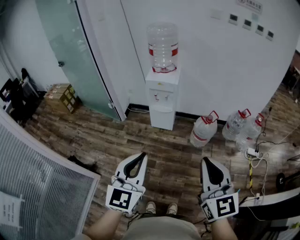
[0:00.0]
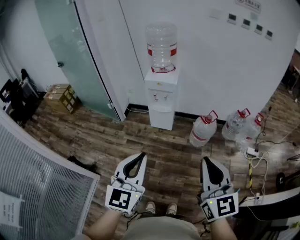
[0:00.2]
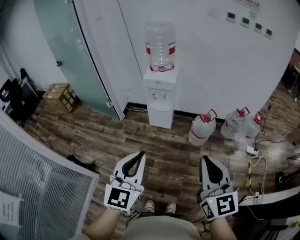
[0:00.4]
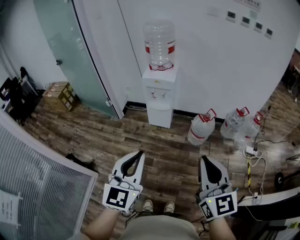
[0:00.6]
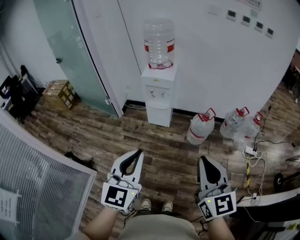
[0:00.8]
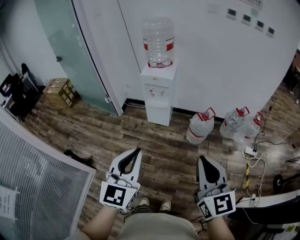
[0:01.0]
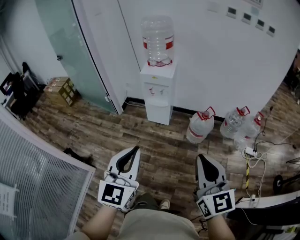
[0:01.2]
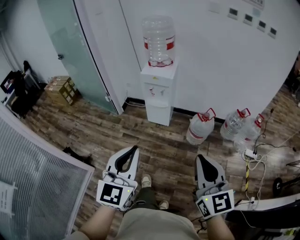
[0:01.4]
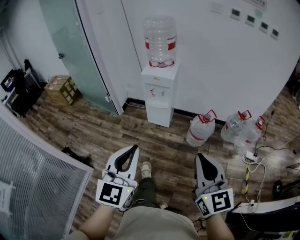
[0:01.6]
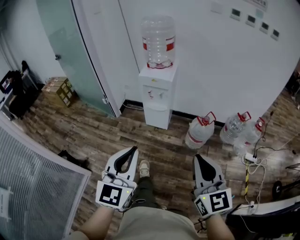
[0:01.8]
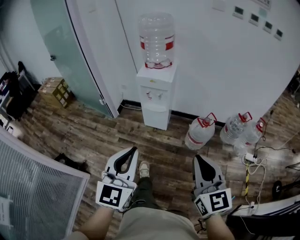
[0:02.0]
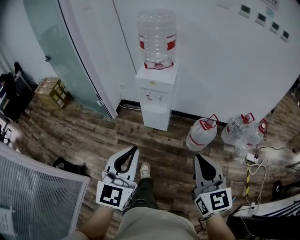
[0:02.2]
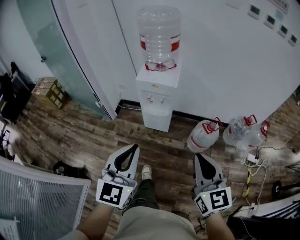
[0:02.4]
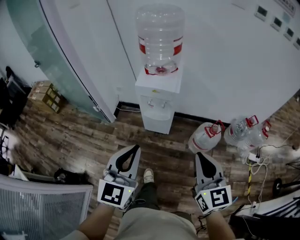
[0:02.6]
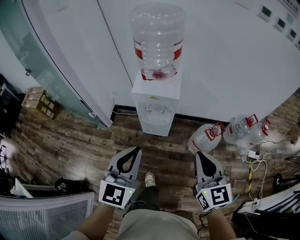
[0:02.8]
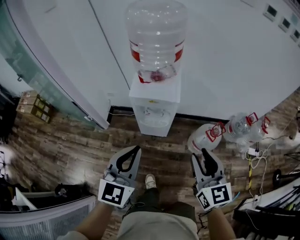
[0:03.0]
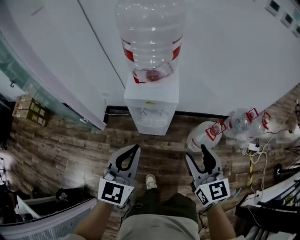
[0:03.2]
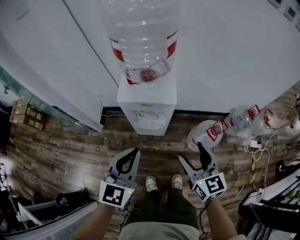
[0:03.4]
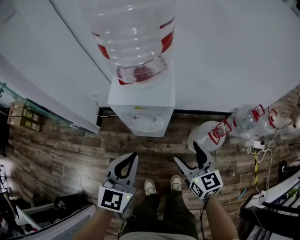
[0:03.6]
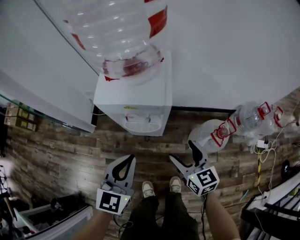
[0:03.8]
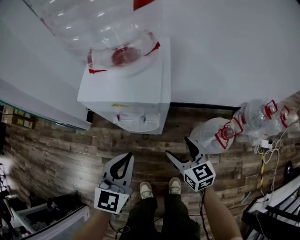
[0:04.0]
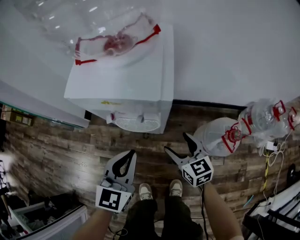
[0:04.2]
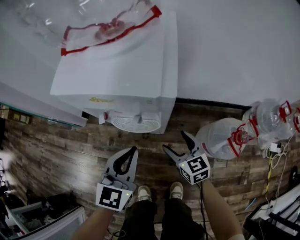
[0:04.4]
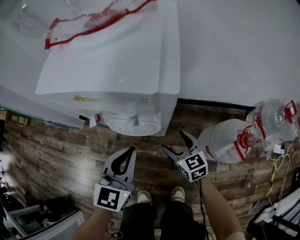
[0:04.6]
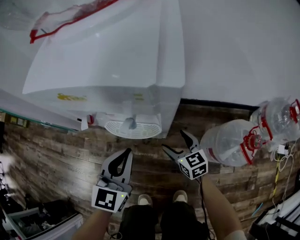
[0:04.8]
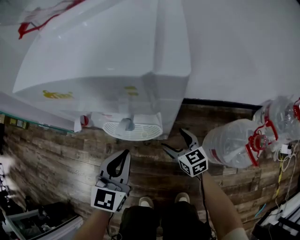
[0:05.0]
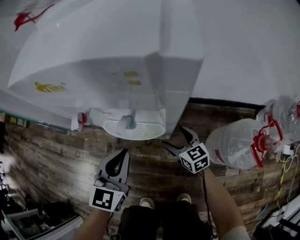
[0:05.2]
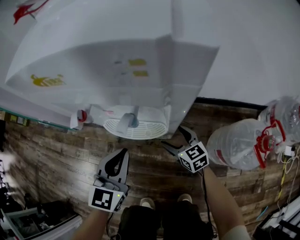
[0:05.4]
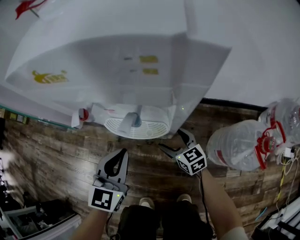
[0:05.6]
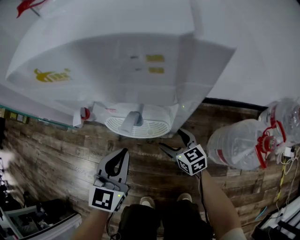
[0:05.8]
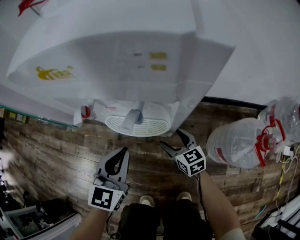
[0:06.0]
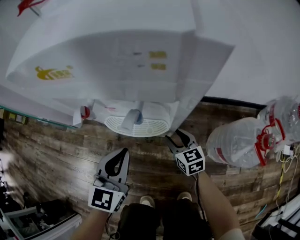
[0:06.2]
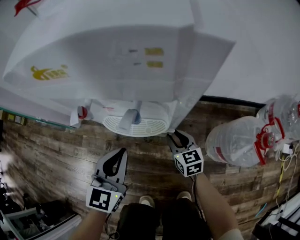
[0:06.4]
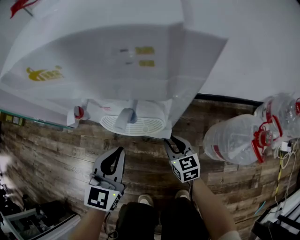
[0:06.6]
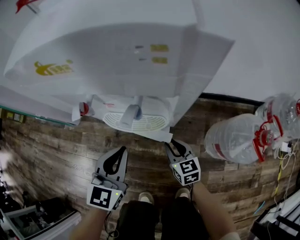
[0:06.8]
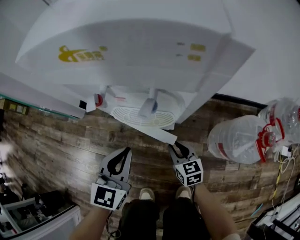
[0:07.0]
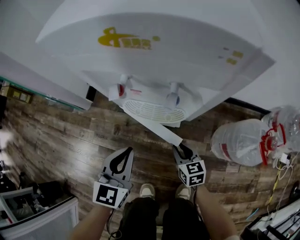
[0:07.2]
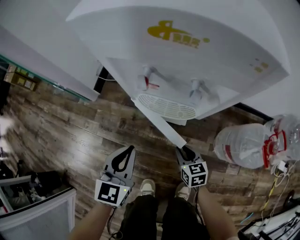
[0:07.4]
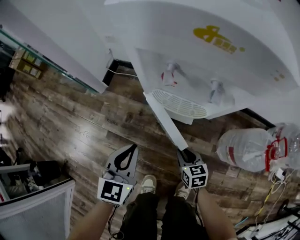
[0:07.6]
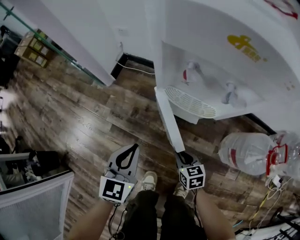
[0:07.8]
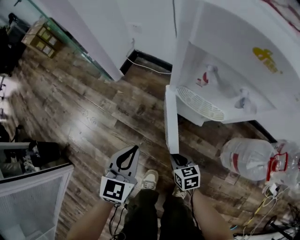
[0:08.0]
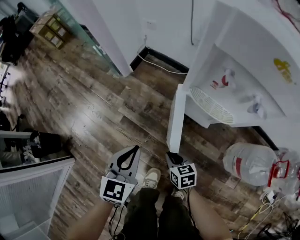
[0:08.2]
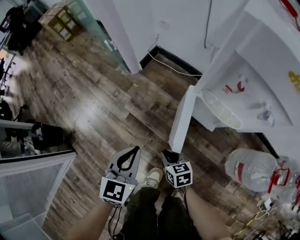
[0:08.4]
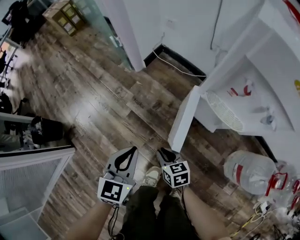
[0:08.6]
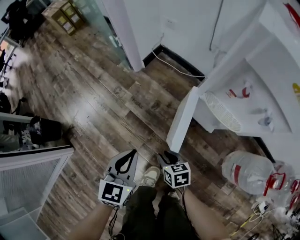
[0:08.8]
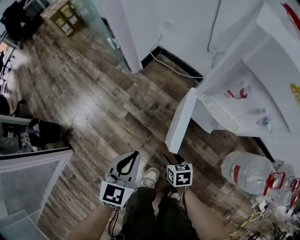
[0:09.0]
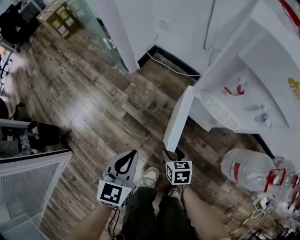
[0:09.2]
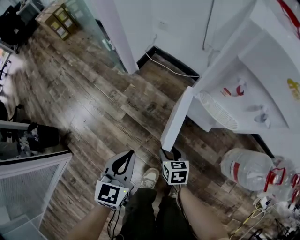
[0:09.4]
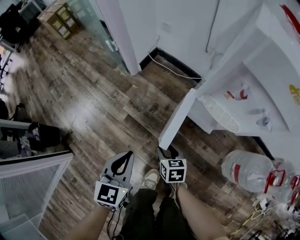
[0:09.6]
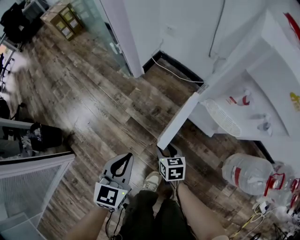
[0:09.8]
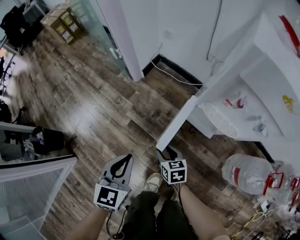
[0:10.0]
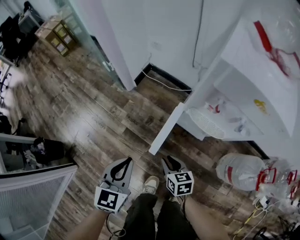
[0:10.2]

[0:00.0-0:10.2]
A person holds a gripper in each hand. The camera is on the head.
0:00.0 to 0:01.4: Both grippers move to the right, about 5 cm.
0:01.4 to 0:03.0: Both grippers are carried forward, some 40 cm.
0:03.0 to 0:04.4: The grippers both shift downward and forward by roughly 50 cm. The right gripper turns by some 20 degrees, and opens its fingers.
0:04.4 to 0:05.8: Both grippers move downward, approximately 15 cm.
0:05.8 to 0:07.2: The right gripper is displaced backward by roughly 10 cm, and closes. The left gripper ends up some 5 cm from where it was.
0:07.2 to 0:08.8: The left gripper shifts by approximately 25 cm, and turns by roughly 30 degrees, while the right gripper ends up approximately 30 cm from where it was, and changes its angle by approximately 40 degrees.
0:08.8 to 0:10.2: The grippers both shift upward by approximately 10 cm.

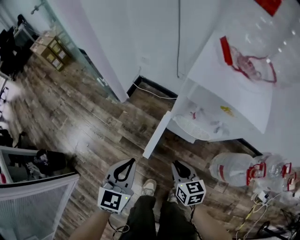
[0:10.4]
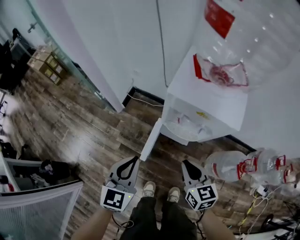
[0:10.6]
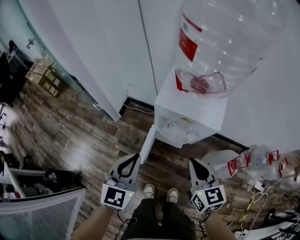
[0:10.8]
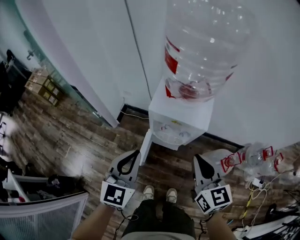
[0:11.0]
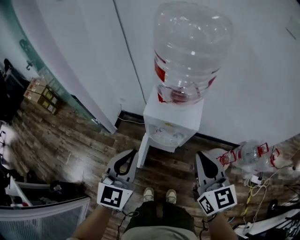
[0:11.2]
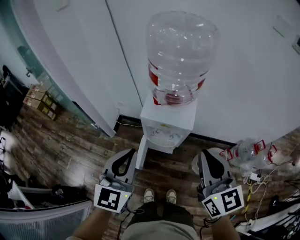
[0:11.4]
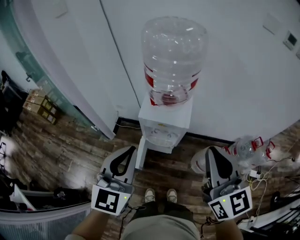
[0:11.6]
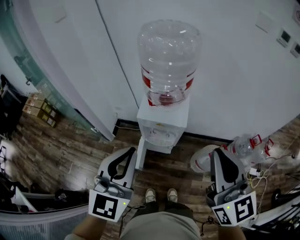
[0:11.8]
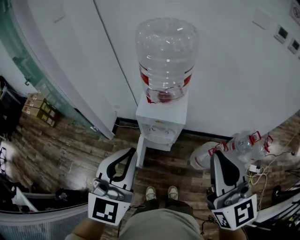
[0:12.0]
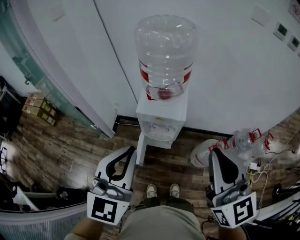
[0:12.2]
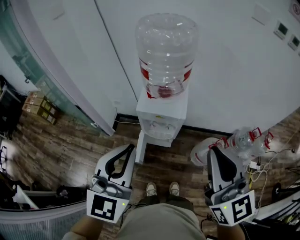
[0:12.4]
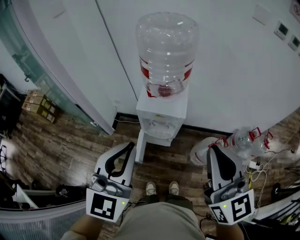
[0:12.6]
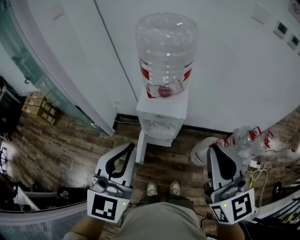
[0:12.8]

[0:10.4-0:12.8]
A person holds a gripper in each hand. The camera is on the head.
0:10.4 to 0:11.6: Both grippers travel together upward, about 50 cm. The right gripper tilts its fingers about 30 degrees upward; the left gripper turns by approximately 30 degrees.
0:11.6 to 0:12.8: The right gripper moves backward, some 5 cm. The left gripper ends up approximately 5 cm from where it was.

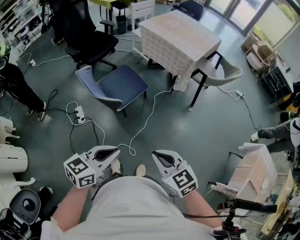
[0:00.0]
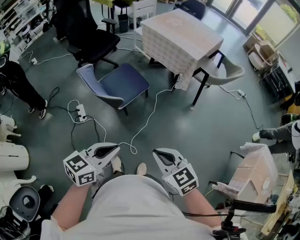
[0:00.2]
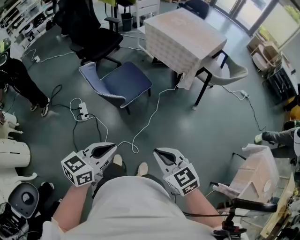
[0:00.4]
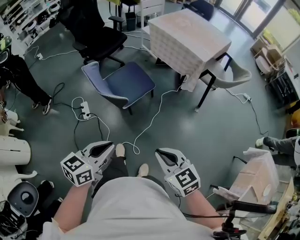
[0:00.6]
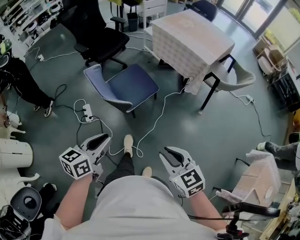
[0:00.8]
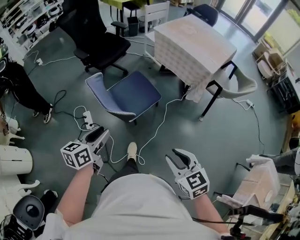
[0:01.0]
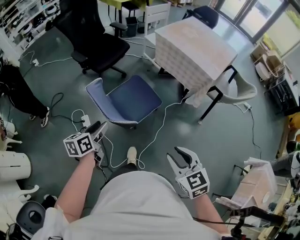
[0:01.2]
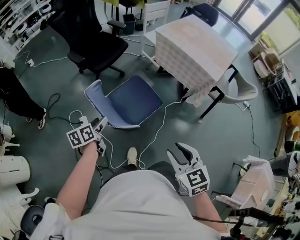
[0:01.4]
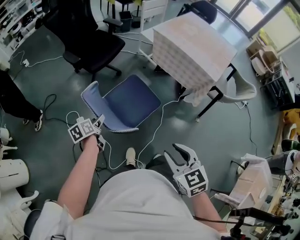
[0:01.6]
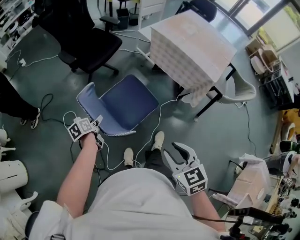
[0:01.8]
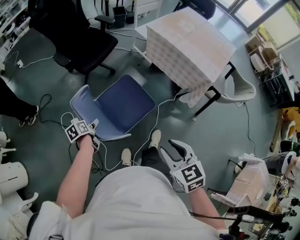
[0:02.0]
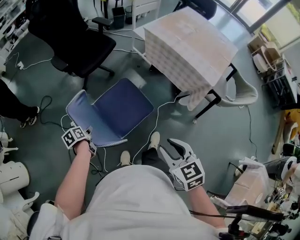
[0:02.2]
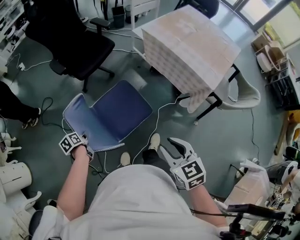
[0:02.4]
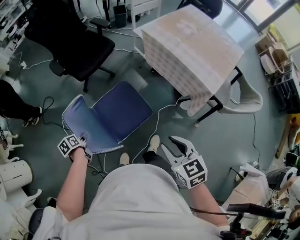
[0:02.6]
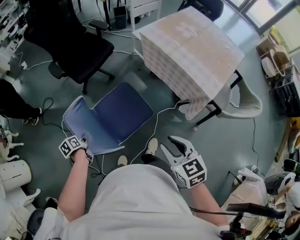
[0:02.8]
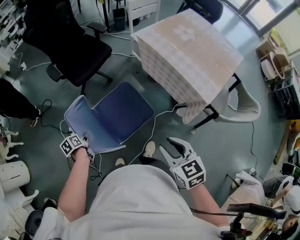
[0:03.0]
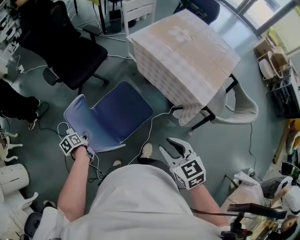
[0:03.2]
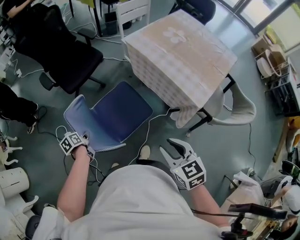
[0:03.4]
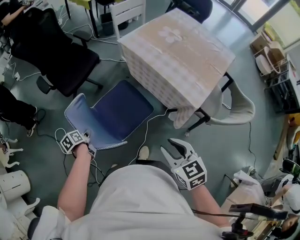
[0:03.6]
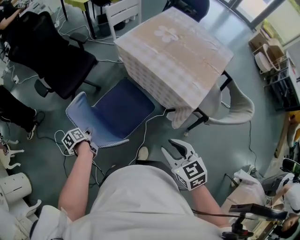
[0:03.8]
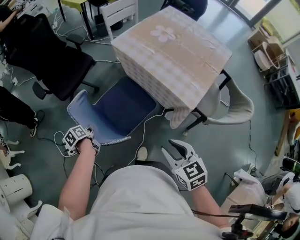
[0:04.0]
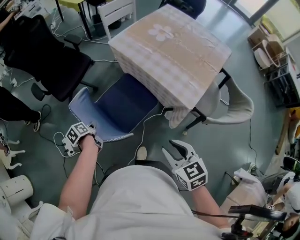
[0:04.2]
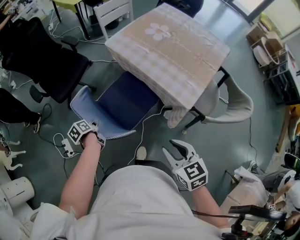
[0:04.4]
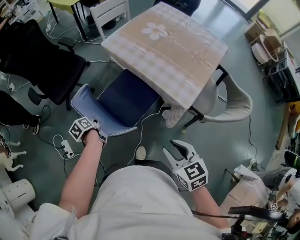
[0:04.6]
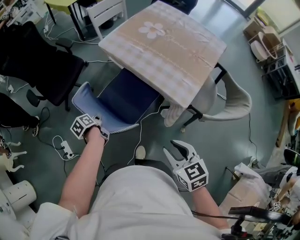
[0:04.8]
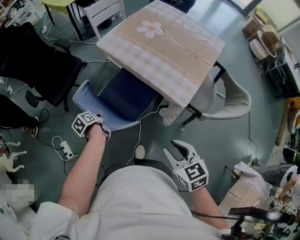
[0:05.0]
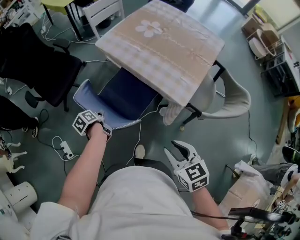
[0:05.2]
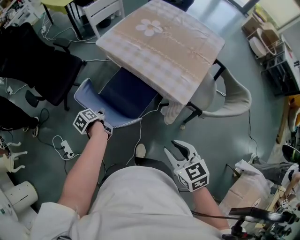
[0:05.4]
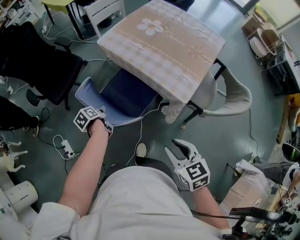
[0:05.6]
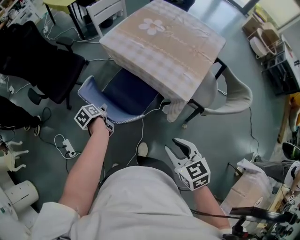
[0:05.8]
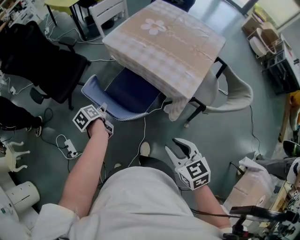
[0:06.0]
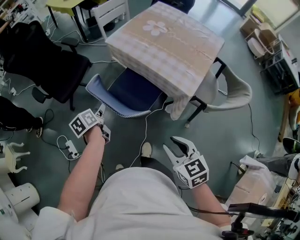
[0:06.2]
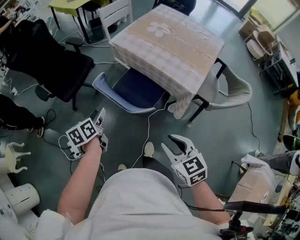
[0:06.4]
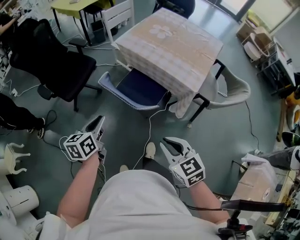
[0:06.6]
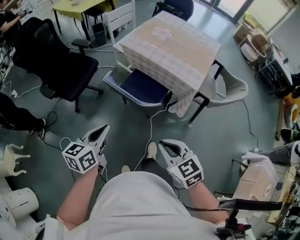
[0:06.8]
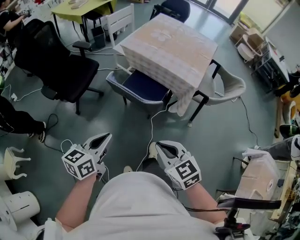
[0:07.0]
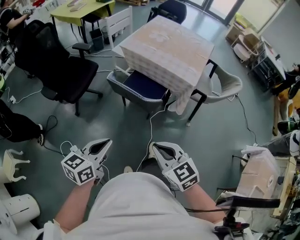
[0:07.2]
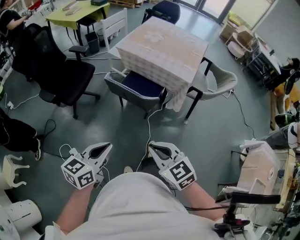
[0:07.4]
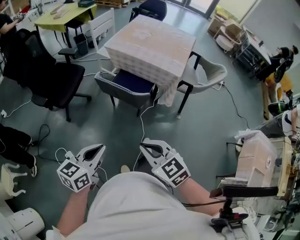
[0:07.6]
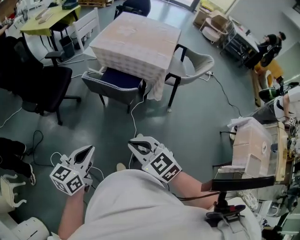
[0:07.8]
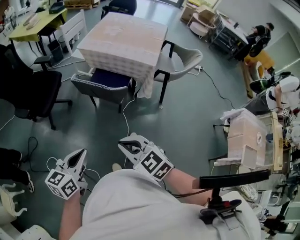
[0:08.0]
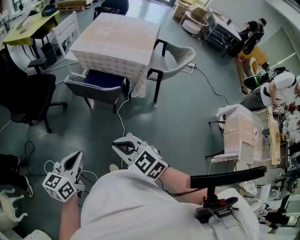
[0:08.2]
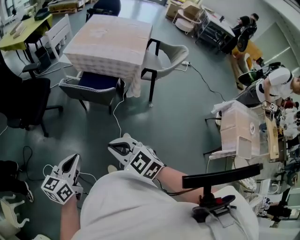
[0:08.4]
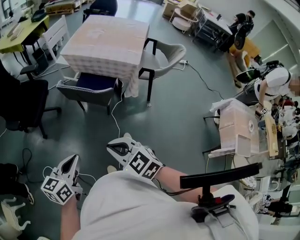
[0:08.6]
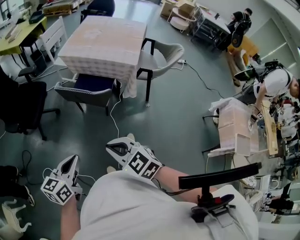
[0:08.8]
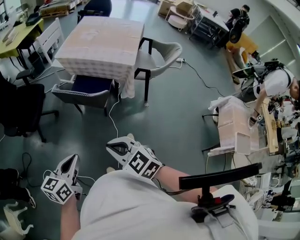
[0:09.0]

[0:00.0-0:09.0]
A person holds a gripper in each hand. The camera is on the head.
0:00.0 to 0:01.6: The right gripper travels forward by some 25 cm, and opens; the left gripper shifts about 50 cm forward, to the left and downward, turns by roughly 60 degrees, and opens up.
0:01.6 to 0:03.0: The left gripper moves to the right, forward and downward, about 15 cm, turns by some 20 degrees, and closes; the right gripper moves forward and to the right, some 30 cm.
0:03.0 to 0:04.4: The left gripper heads to the right and forward, covering about 25 cm. Meanwhile the right gripper goes about 15 cm to the right.
0:04.4 to 0:06.0: The left gripper goes approximately 5 cm to the right, and opens.
0:06.0 to 0:07.6: The left gripper heads backward and upward, covering approximately 40 cm, swivels about 70 degrees, and closes up, while the right gripper is displaced to the left and backward by approximately 35 cm, and closes.
0:07.6 to 0:09.0: There are only small adjustments of the grippers.

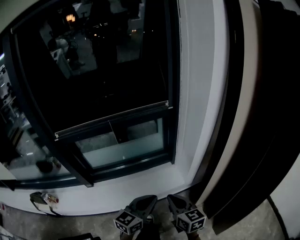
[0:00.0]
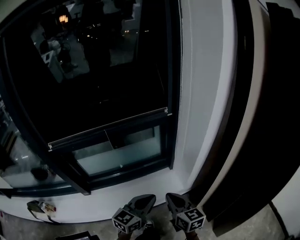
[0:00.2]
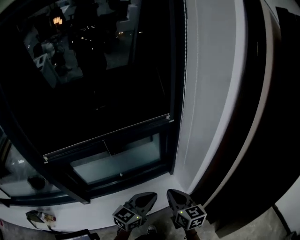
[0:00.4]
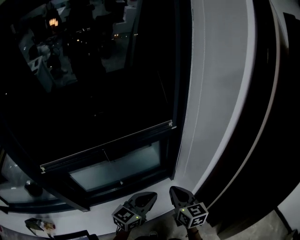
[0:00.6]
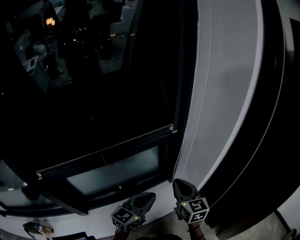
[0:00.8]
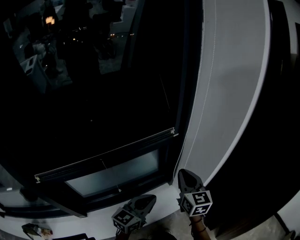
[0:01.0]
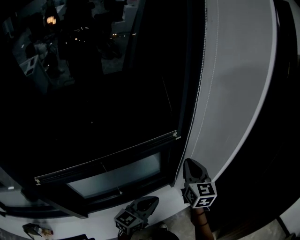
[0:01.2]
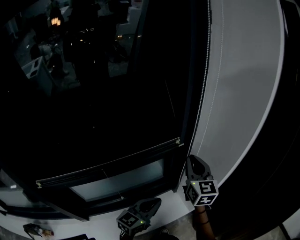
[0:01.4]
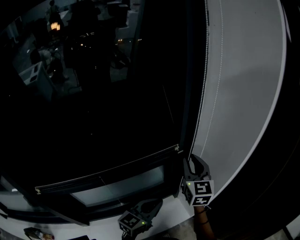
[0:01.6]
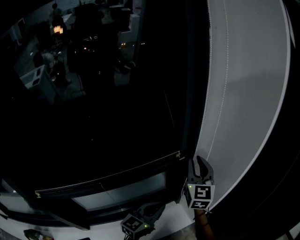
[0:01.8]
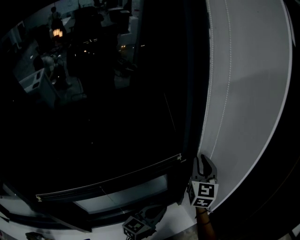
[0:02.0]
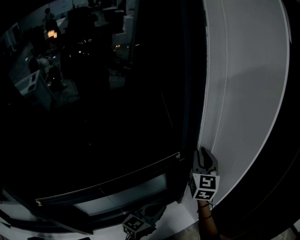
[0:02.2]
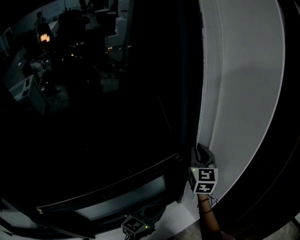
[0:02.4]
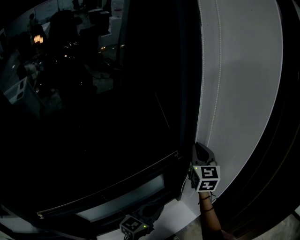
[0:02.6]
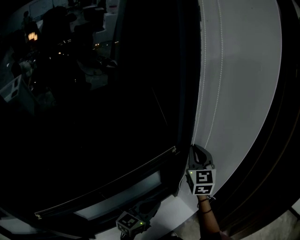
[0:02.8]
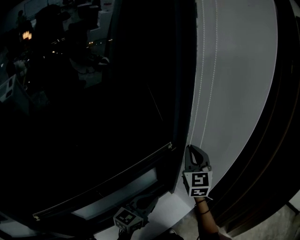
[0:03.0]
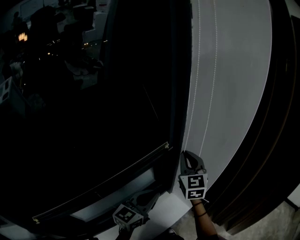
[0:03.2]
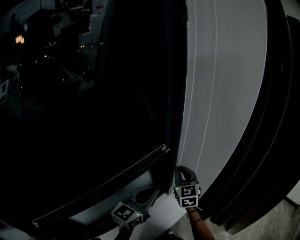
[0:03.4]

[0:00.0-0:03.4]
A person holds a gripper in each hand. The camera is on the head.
0:00.0 to 0:01.6: The left gripper travels forward and to the left by approximately 30 cm, while the right gripper shifts some 50 cm forward and upward, swivels roughly 40 degrees, and opens.
0:01.6 to 0:03.4: The left gripper moves upward, some 10 cm; the right gripper travels downward by some 10 cm.
